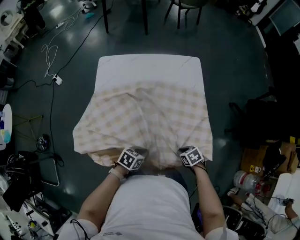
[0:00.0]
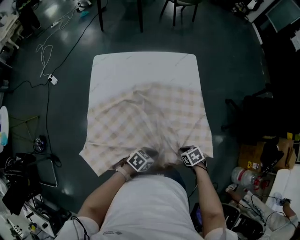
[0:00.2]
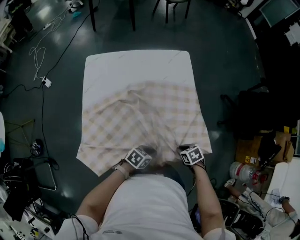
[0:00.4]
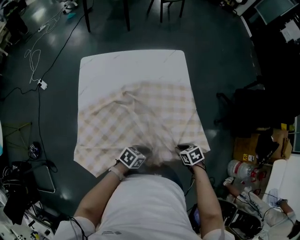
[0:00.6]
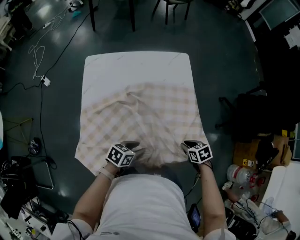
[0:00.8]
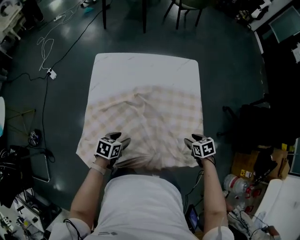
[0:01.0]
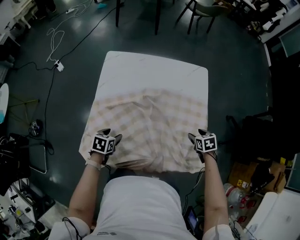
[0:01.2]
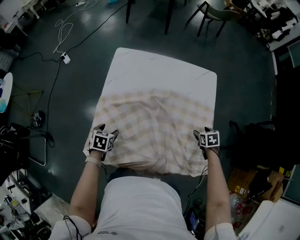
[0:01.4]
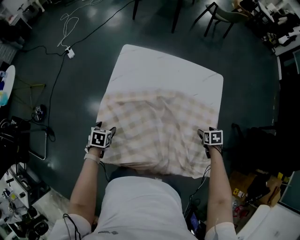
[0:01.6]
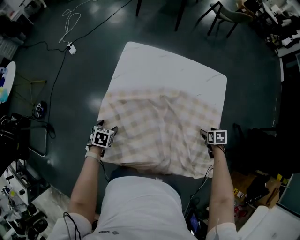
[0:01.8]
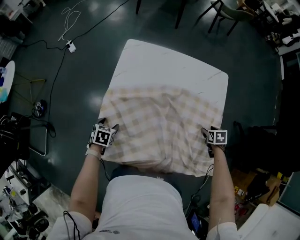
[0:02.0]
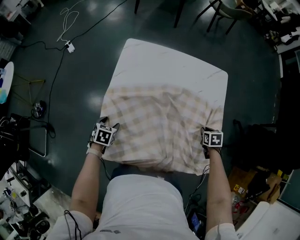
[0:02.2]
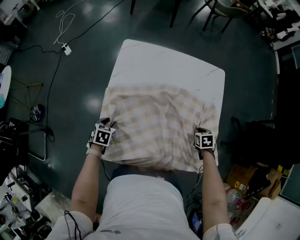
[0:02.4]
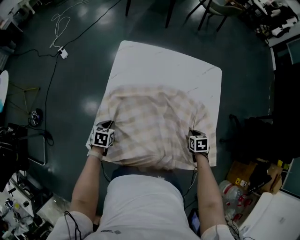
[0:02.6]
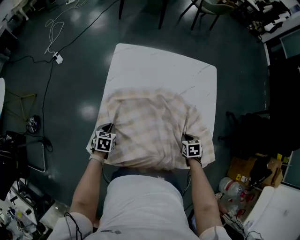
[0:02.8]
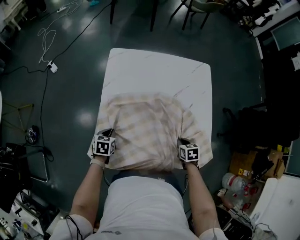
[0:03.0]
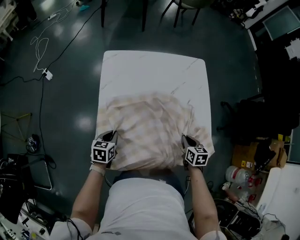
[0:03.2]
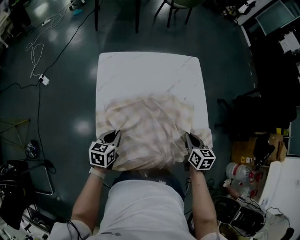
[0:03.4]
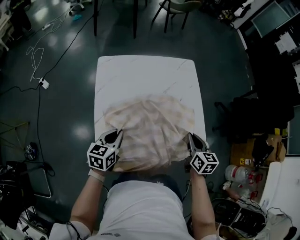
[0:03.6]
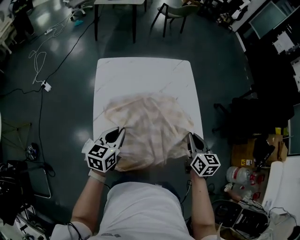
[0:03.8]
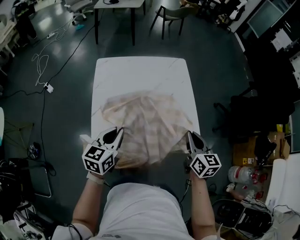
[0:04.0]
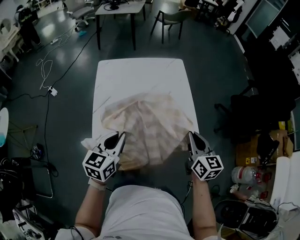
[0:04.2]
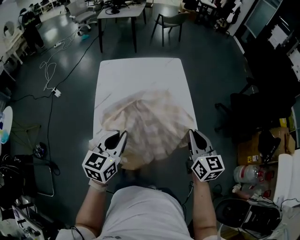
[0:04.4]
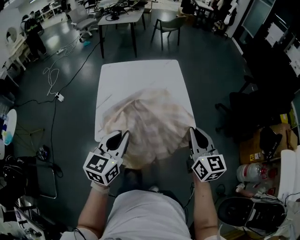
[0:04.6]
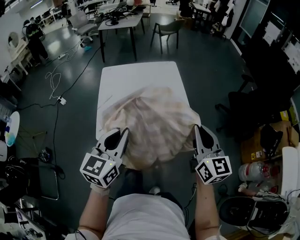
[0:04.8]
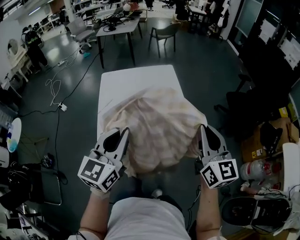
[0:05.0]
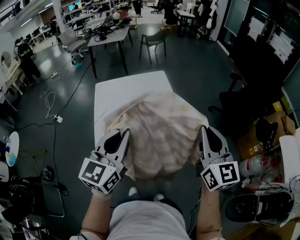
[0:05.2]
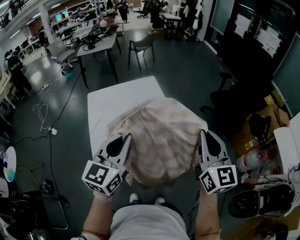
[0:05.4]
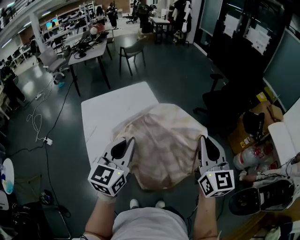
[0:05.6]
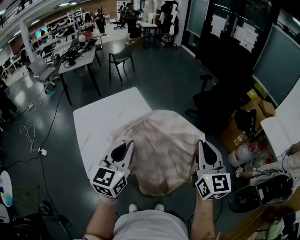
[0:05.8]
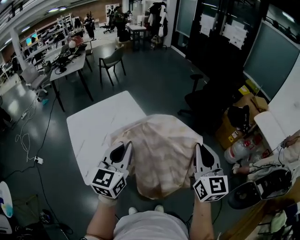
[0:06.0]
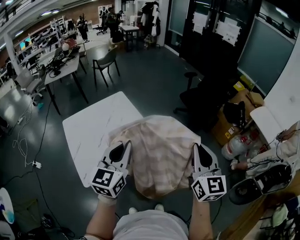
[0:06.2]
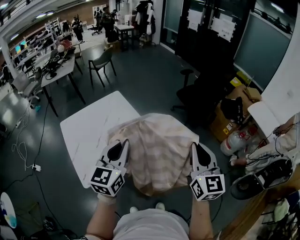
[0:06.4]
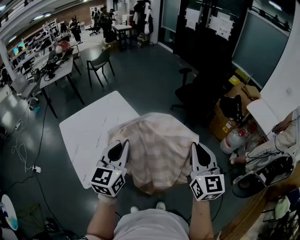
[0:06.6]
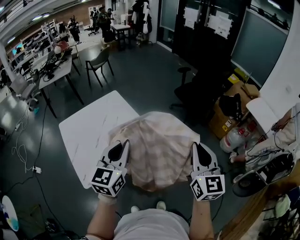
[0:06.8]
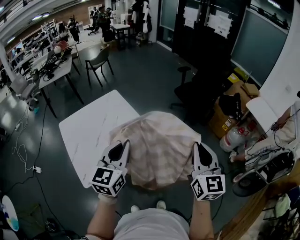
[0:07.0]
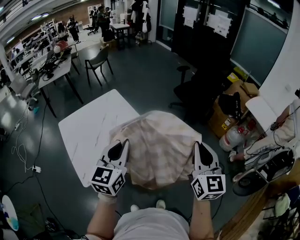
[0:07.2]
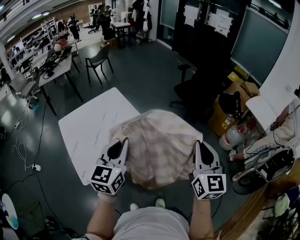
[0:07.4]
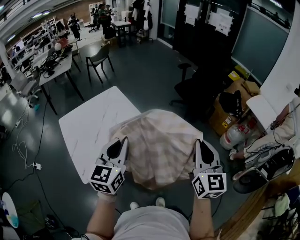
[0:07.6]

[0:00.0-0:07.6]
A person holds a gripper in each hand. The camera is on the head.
0:00.0 to 0:01.6: The right gripper changes place by about 25 cm, and opens up. The left gripper moves about 30 cm, changes its angle by approximately 40 degrees, and opens.
0:01.6 to 0:03.0: The right gripper moves some 20 cm, and closes up, while the left gripper closes its fingers.
0:03.0 to 0:04.6: The right gripper heads upward and backward, covering roughly 40 cm, and tilts its fingers roughly 60 degrees upward, while the left gripper is displaced upward, to the right and backward by approximately 50 cm, and points its fingers roughly 40 degrees further upward.
0:04.6 to 0:06.0: The right gripper moves approximately 20 cm, and rotates about 40 degrees. The left gripper is displaced upward by about 10 cm, and turns by approximately 30 degrees.
0:06.0 to 0:07.6: The right gripper shifts by roughly 5 cm.

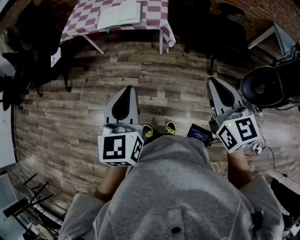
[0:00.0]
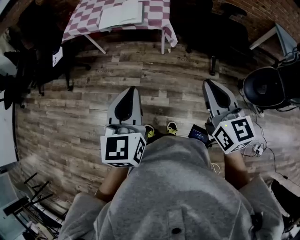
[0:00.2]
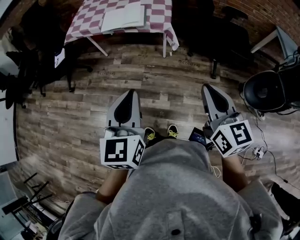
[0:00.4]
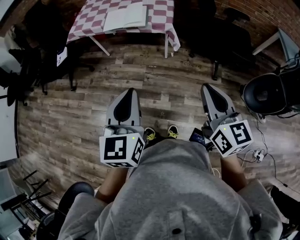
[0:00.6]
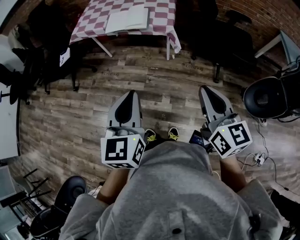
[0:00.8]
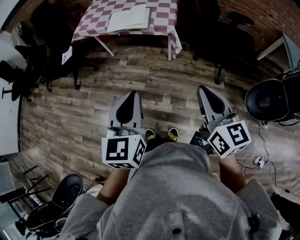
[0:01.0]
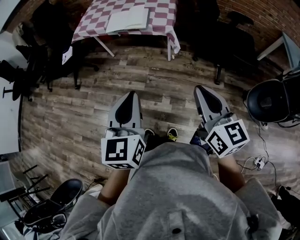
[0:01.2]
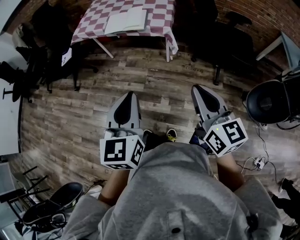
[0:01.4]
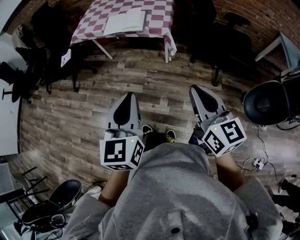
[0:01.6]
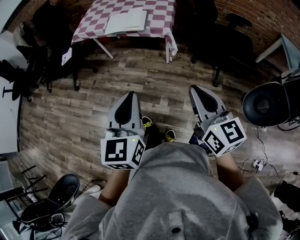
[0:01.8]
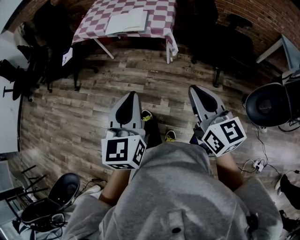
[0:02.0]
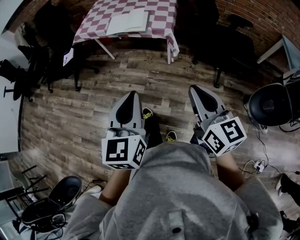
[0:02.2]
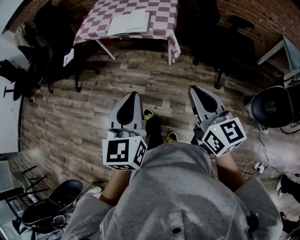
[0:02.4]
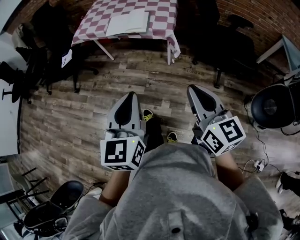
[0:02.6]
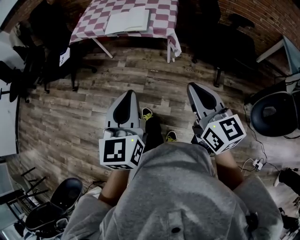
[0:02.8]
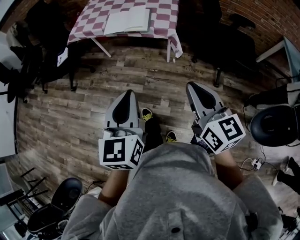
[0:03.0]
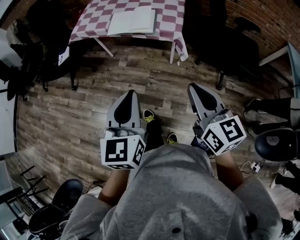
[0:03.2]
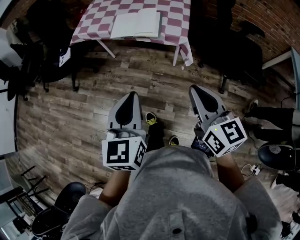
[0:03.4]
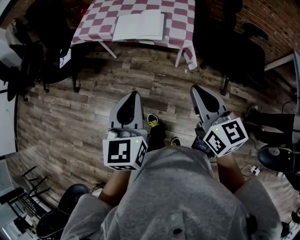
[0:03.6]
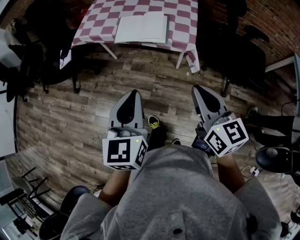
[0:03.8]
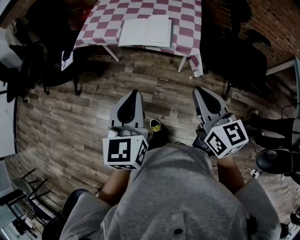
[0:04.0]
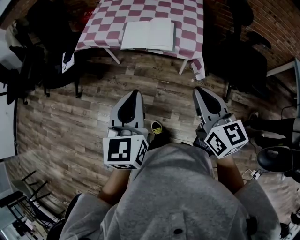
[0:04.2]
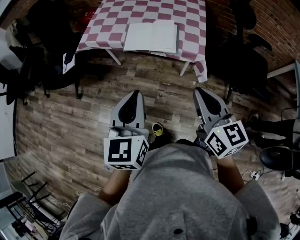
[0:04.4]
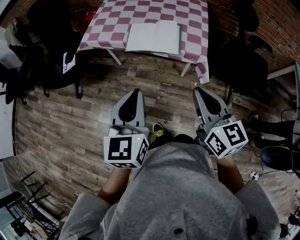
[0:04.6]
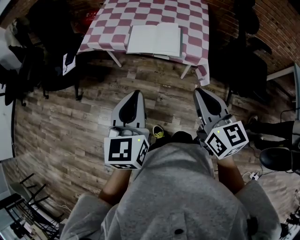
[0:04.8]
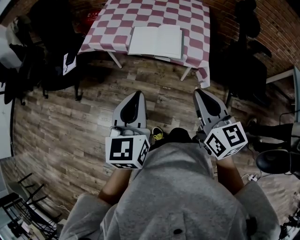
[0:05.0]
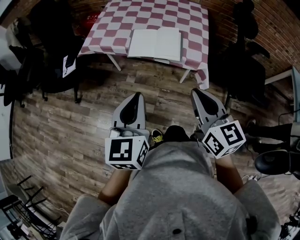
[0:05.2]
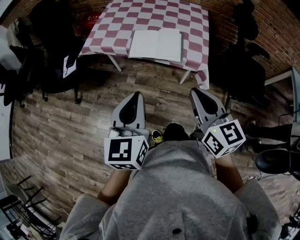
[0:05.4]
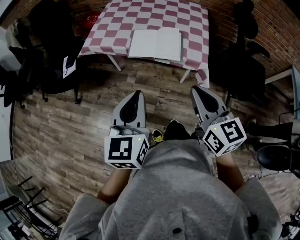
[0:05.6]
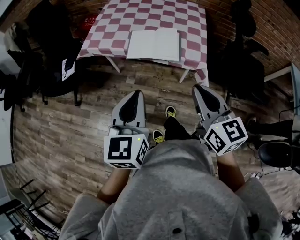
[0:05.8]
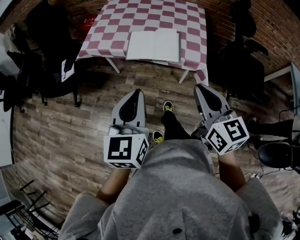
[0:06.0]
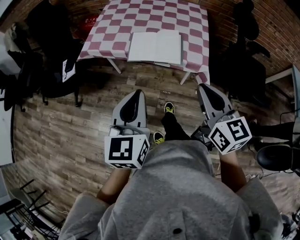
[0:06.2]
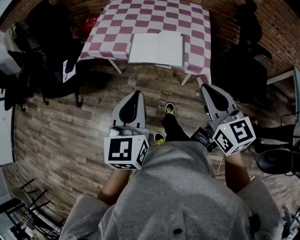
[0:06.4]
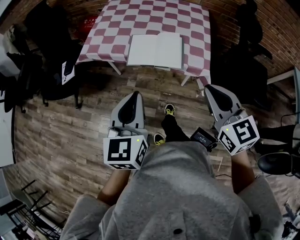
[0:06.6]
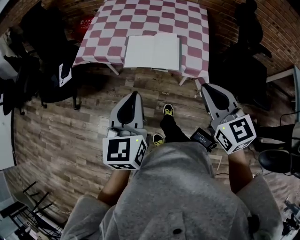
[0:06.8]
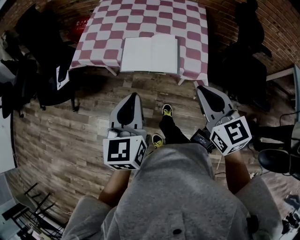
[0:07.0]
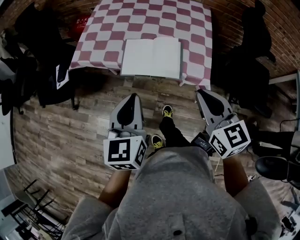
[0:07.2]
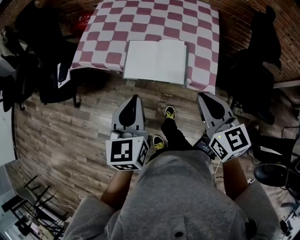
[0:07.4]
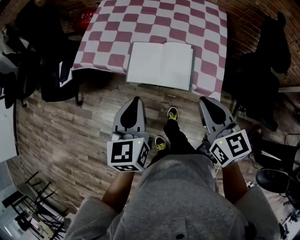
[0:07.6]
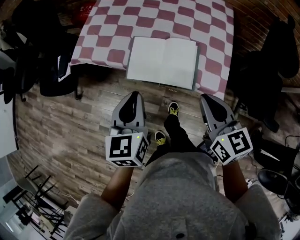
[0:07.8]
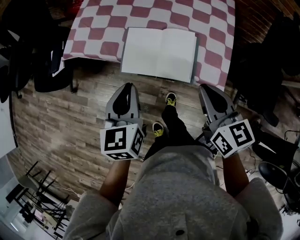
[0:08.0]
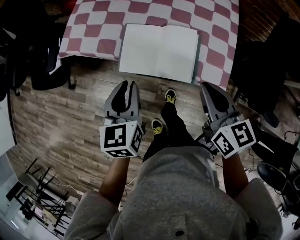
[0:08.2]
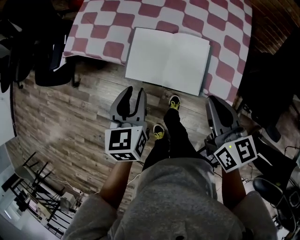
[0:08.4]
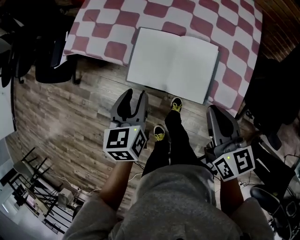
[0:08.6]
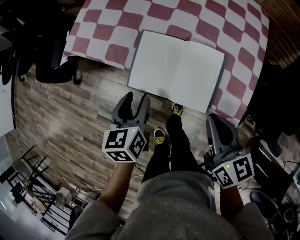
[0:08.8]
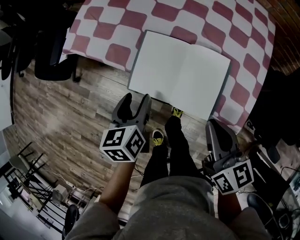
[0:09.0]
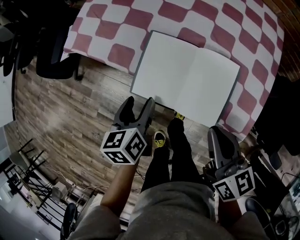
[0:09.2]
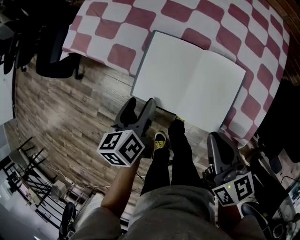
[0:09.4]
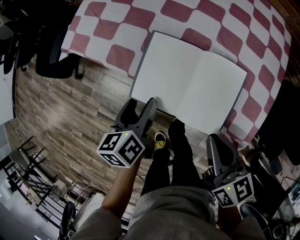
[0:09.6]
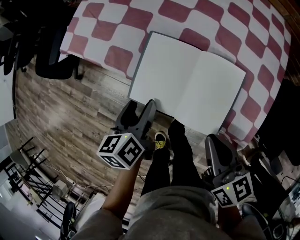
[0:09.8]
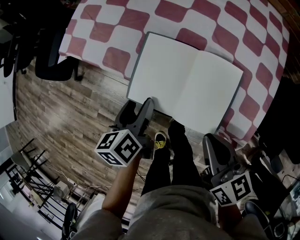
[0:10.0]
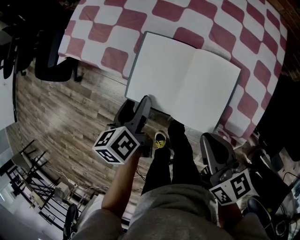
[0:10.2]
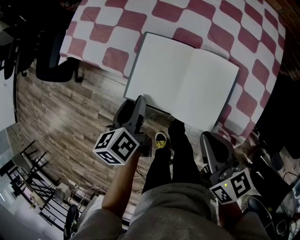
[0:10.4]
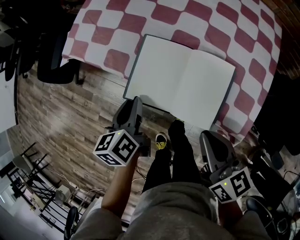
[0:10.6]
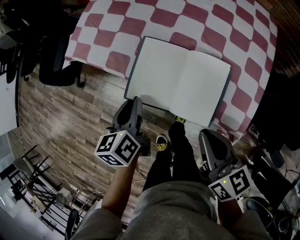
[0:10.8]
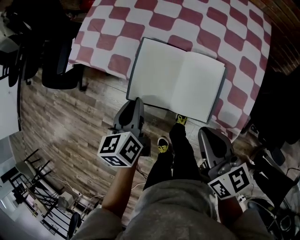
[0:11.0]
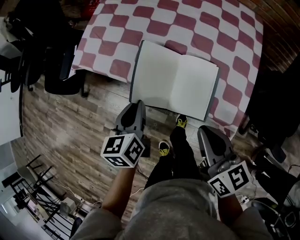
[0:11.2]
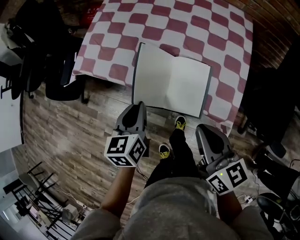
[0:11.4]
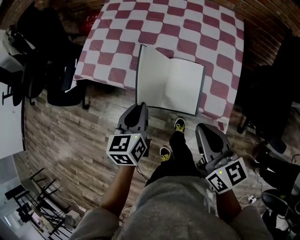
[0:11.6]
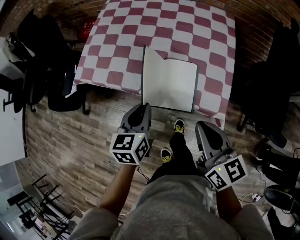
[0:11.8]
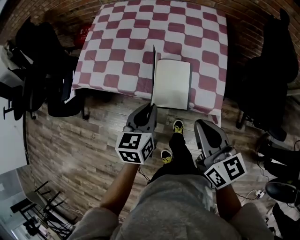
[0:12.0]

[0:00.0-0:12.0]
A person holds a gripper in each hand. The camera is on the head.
0:00.0 to 0:01.6: The left gripper shifts by roughly 5 cm.
0:01.6 to 0:03.0: Both grippers move forward, some 10 cm.
0:03.0 to 0:04.4: Both grippers move forward and to the left, approximately 20 cm.
0:04.4 to 0:06.0: There are only small adjustments of the grippers.
0:06.0 to 0:07.6: The right gripper travels forward by about 15 cm. The left gripper shifts some 20 cm forward and downward.
0:07.6 to 0:09.0: The right gripper shifts approximately 15 cm downward and forward. Meanwhile the left gripper goes approximately 20 cm downward and forward, turns by some 30 degrees, and opens its fingers.
0:09.0 to 0:10.4: There are only small adjustments of the grippers.
0:10.4 to 0:12.0: The left gripper is displaced upward, to the right and backward by about 20 cm, changes its angle by some 40 degrees, and closes, while the right gripper goes some 15 cm upward and backward, and swivels approximately 20 degrees.

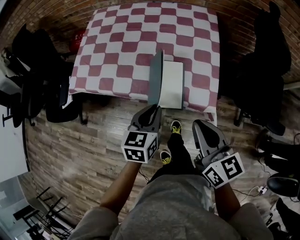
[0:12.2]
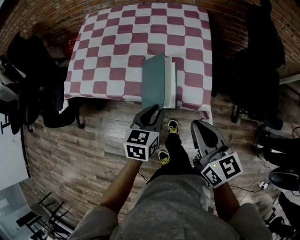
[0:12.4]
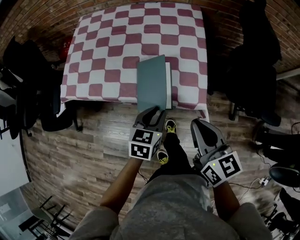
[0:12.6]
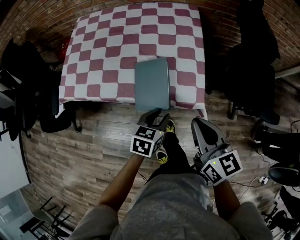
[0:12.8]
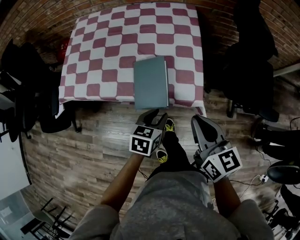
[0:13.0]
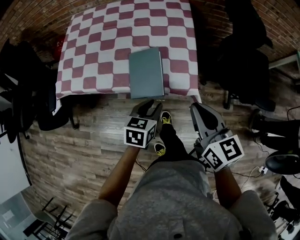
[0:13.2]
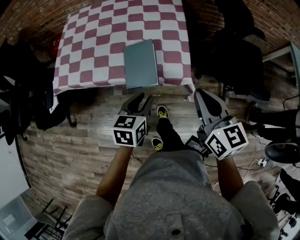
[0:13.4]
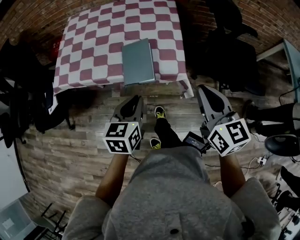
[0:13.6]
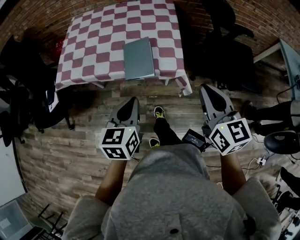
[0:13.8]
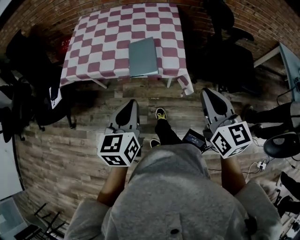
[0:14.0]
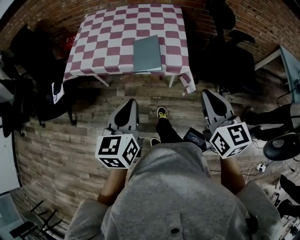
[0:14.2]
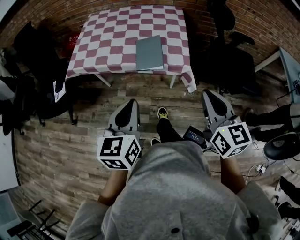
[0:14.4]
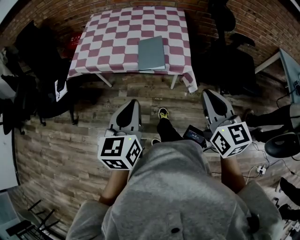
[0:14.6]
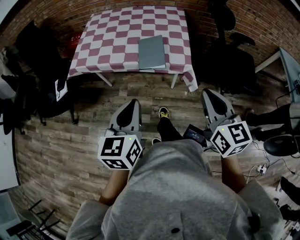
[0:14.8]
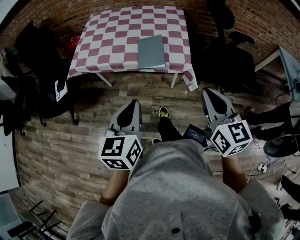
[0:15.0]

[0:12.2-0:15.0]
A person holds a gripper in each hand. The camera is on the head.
0:12.2 to 0:13.6: The left gripper travels backward by approximately 10 cm; the right gripper goes roughly 10 cm to the right and upward.
0:13.6 to 0:15.0: The right gripper travels backward by roughly 15 cm. Meanwhile the left gripper travels backward and upward by some 20 cm.

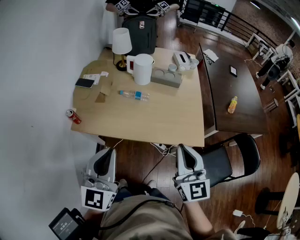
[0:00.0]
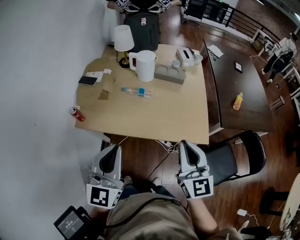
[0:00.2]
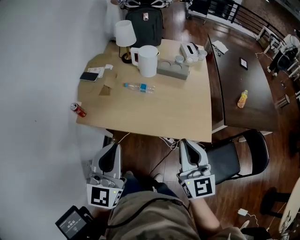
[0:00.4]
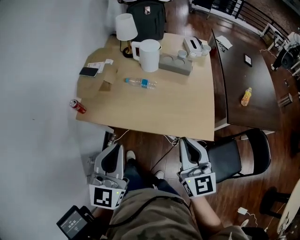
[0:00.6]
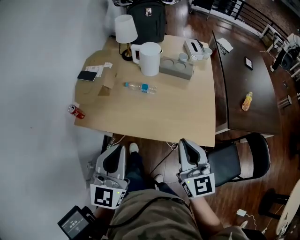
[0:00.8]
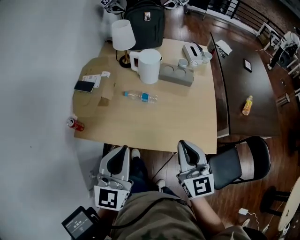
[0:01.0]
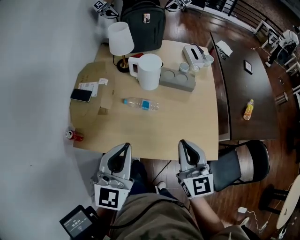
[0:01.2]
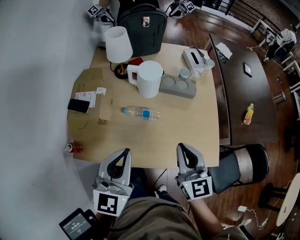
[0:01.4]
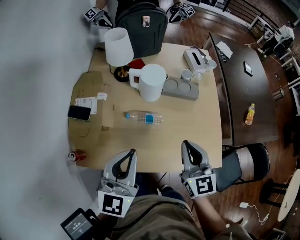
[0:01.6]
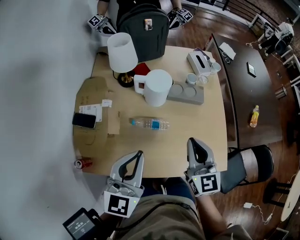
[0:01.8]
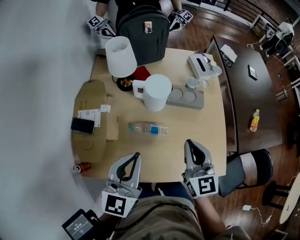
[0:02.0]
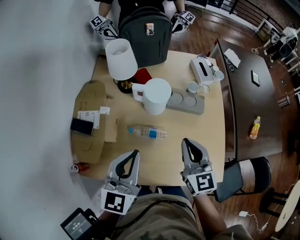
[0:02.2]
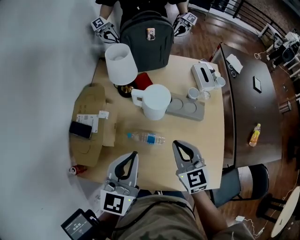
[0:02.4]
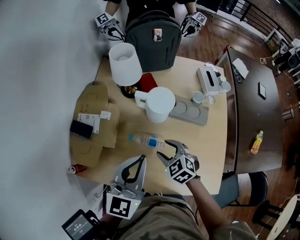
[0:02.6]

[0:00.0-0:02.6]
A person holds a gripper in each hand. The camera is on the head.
0:00.0 to 0:01.2: The grippers both shift forward by about 20 cm.
0:01.2 to 0:02.6: The right gripper travels forward, downward and to the left by roughly 30 cm, tilts its fingers about 40 degrees downward, and opens its fingers. Meanwhile the left gripper goes roughly 20 cm forward.
